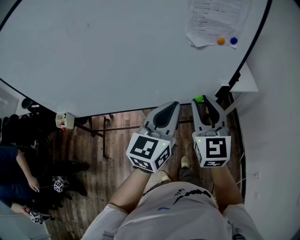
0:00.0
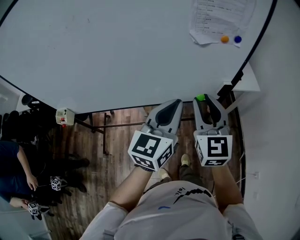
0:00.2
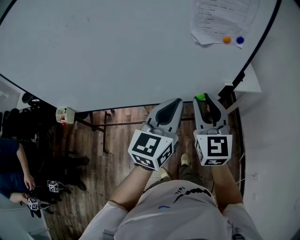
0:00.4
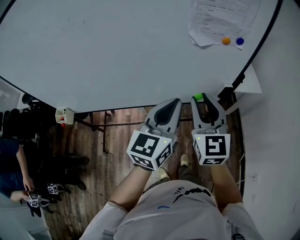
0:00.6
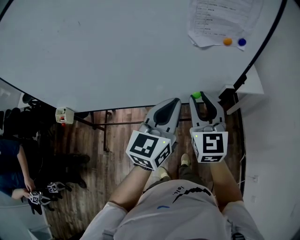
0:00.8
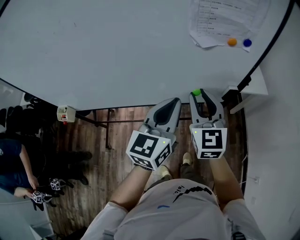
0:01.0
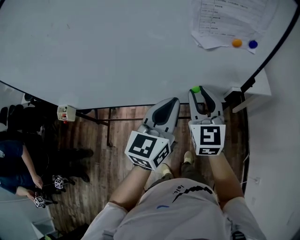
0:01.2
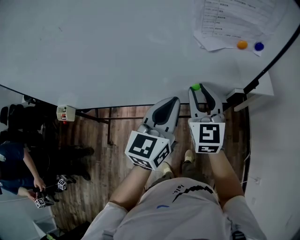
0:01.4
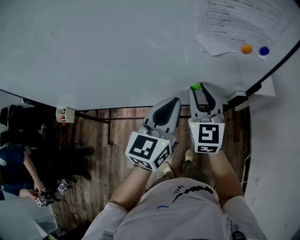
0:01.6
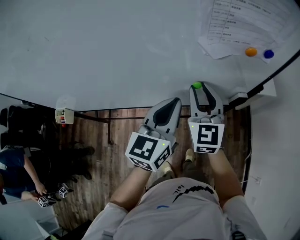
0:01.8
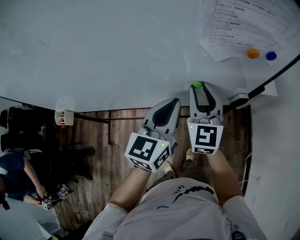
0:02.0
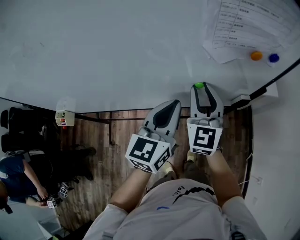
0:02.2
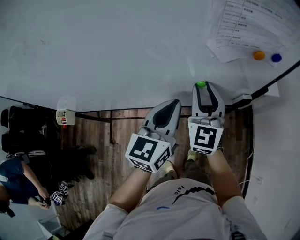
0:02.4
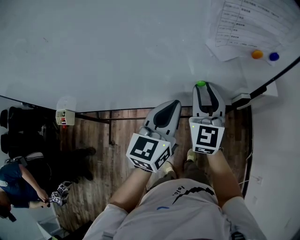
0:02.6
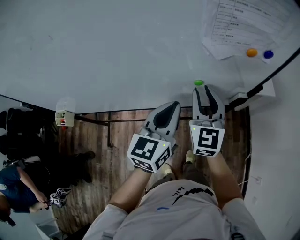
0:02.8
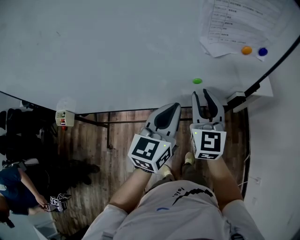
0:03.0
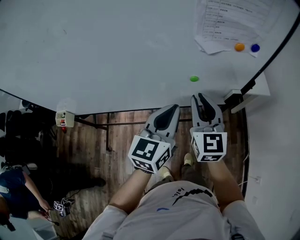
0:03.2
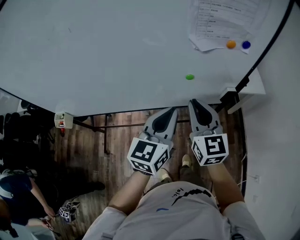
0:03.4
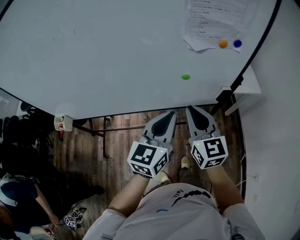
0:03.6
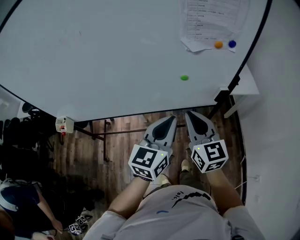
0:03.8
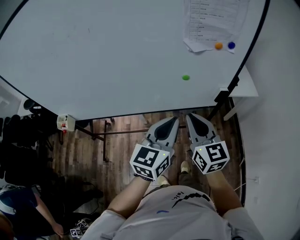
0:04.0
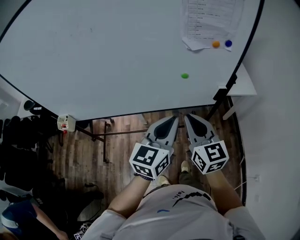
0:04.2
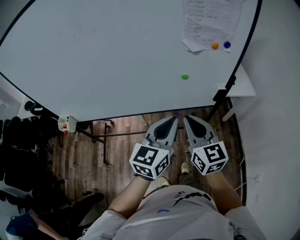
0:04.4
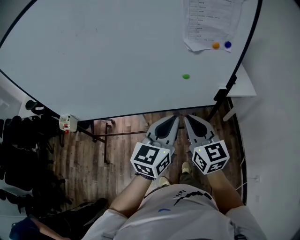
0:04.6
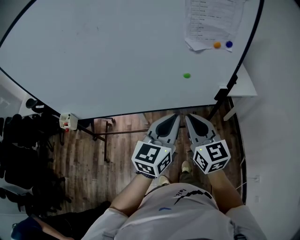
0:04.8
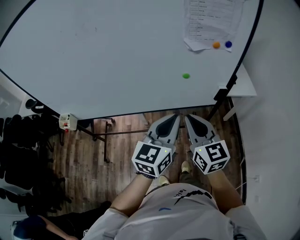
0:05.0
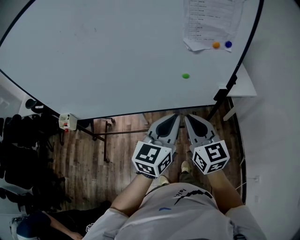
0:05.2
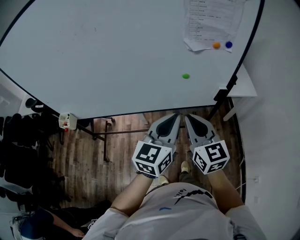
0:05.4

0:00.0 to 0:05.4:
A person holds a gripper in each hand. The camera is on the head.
0:00.0 to 0:01.4: The right gripper goes some 15 cm forward and downward, while the left gripper is displaced forward by about 10 cm.
0:01.4 to 0:02.8: There are only small adjustments of the grippers.
0:02.8 to 0:04.0: The grippers both shift backward by about 15 cm. The right gripper turns by roughly 20 degrees, and closes.
0:04.0 to 0:05.4: The grippers make only small movements.

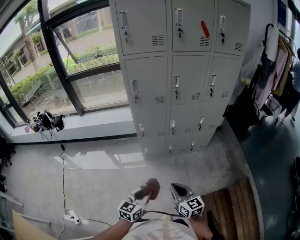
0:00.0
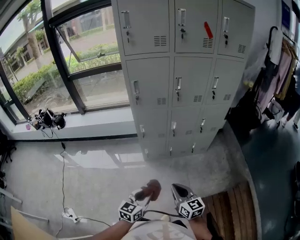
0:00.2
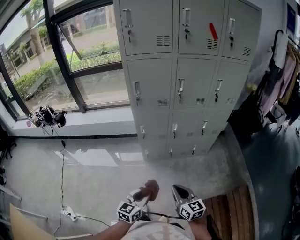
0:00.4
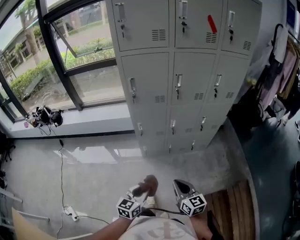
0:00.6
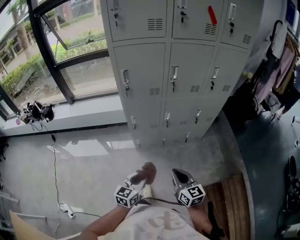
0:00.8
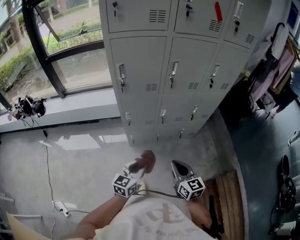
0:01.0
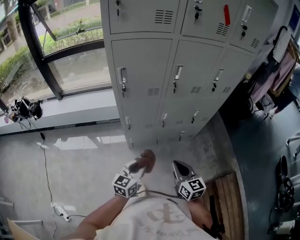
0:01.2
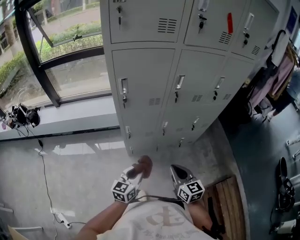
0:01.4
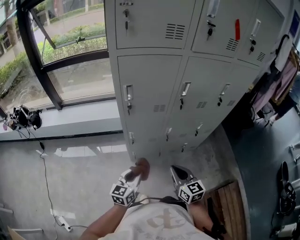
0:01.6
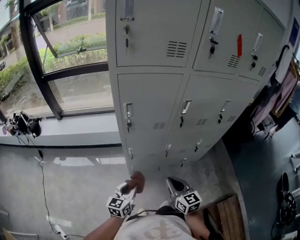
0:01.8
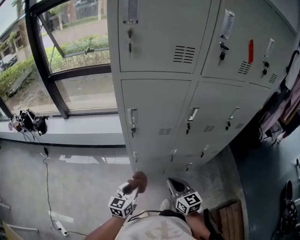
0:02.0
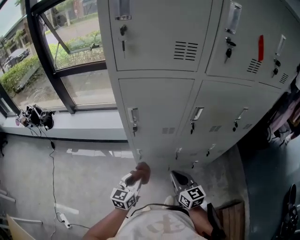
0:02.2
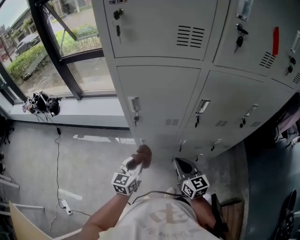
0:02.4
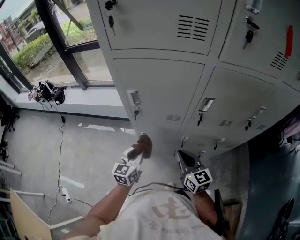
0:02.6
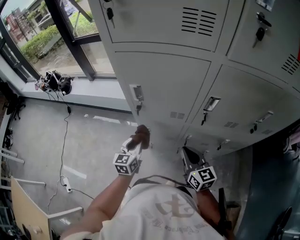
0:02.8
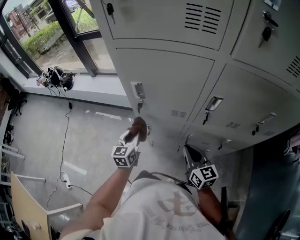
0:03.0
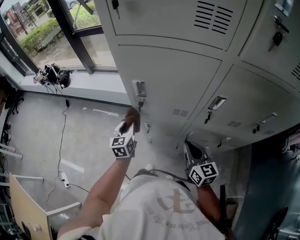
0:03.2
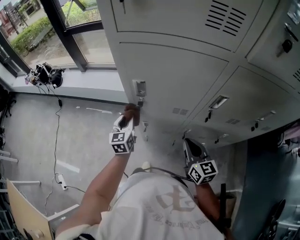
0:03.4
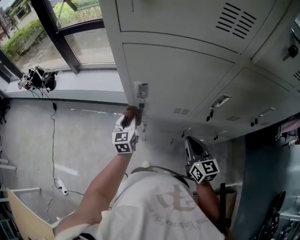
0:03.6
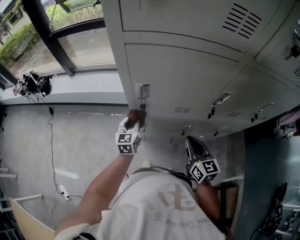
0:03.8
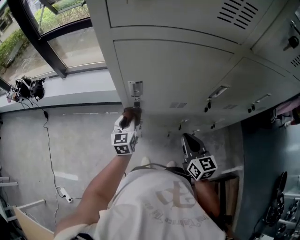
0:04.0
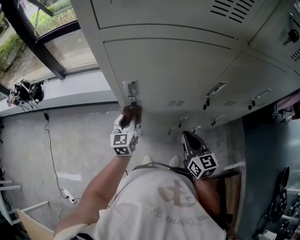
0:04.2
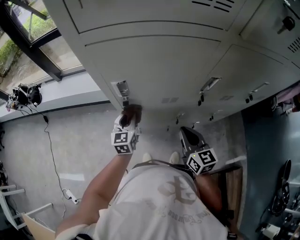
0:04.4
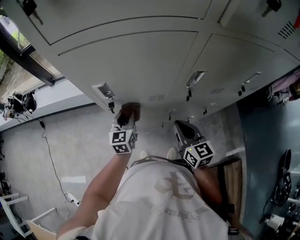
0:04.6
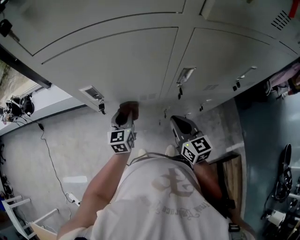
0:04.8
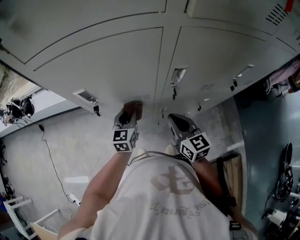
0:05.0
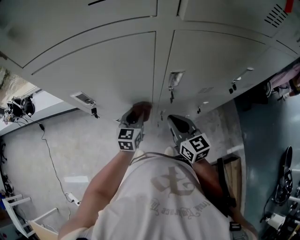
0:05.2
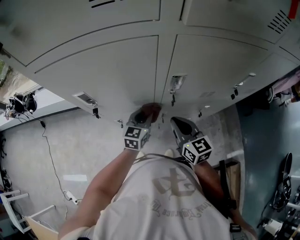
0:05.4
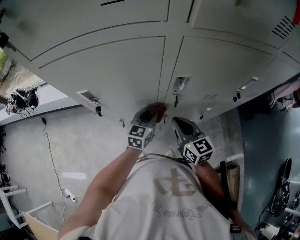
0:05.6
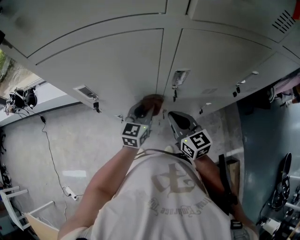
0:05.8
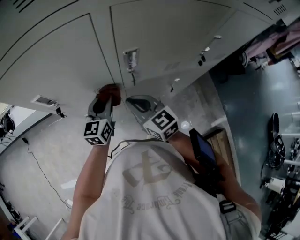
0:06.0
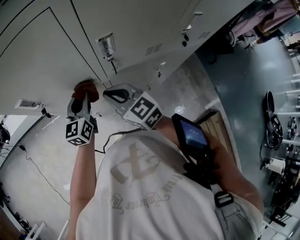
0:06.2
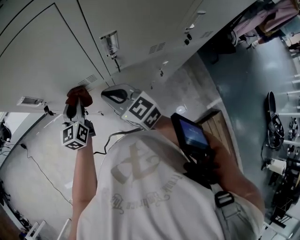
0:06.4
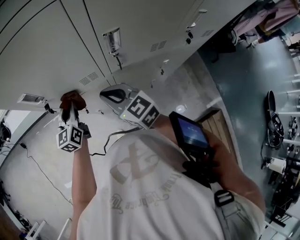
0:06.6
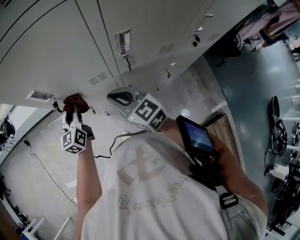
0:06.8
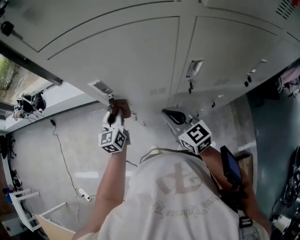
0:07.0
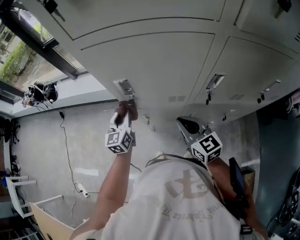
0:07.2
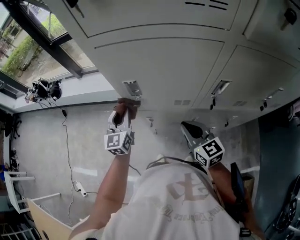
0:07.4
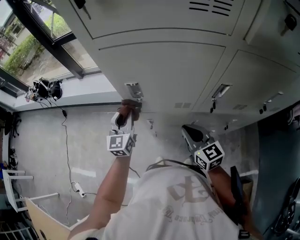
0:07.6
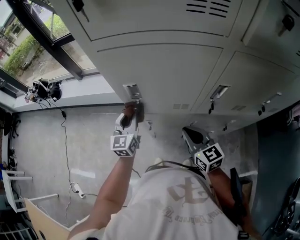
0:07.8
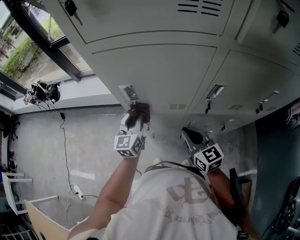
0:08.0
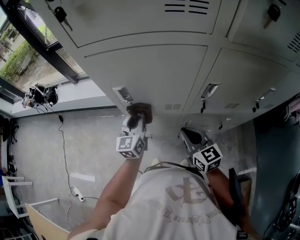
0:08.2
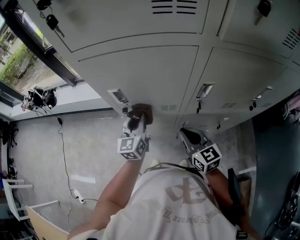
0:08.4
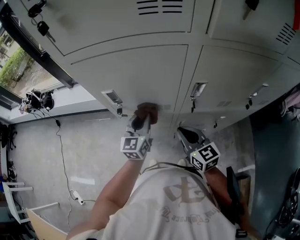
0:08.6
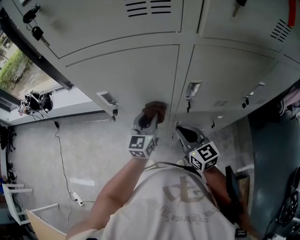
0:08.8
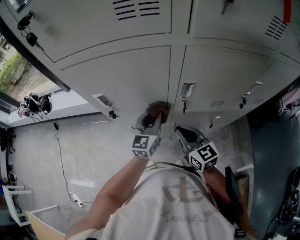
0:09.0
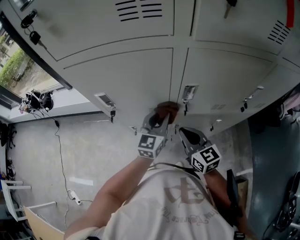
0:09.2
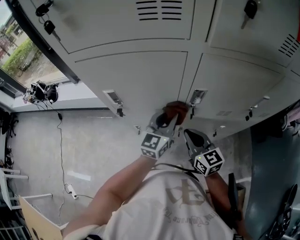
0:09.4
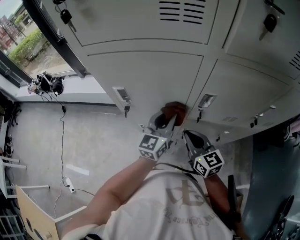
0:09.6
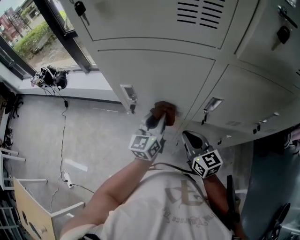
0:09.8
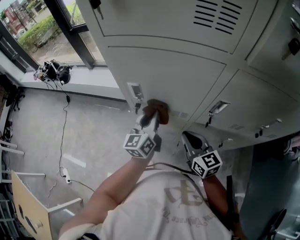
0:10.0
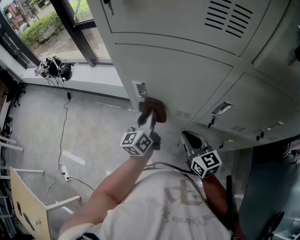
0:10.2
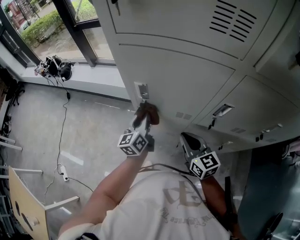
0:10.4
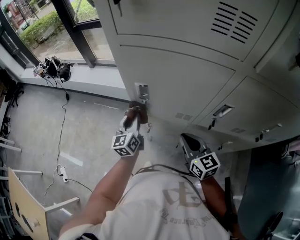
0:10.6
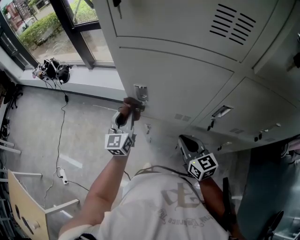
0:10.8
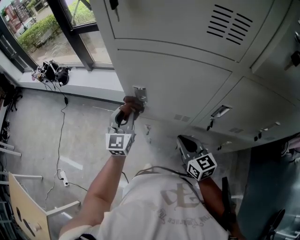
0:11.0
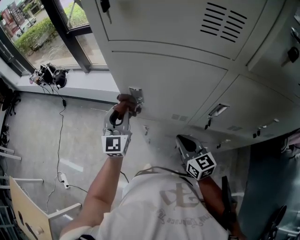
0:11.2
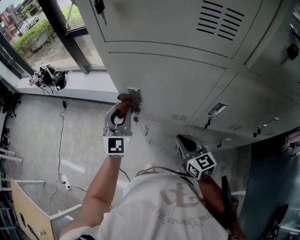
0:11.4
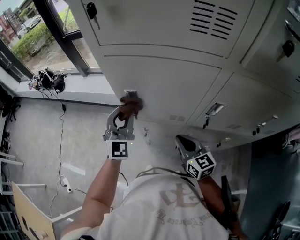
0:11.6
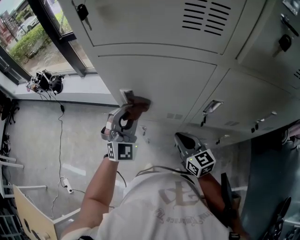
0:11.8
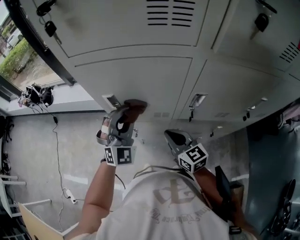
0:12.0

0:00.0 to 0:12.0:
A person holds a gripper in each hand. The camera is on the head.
0:00.0 to 0:01.6: Both grippers move forward, some 25 cm.
0:01.6 to 0:03.0: The right gripper shifts by roughly 20 cm. Meanwhile the left gripper shifts by roughly 20 cm, and turns by roughly 30 degrees.
0:03.0 to 0:04.4: The left gripper heads forward, covering approximately 10 cm.
0:04.4 to 0:06.0: The left gripper shifts some 15 cm to the right. The right gripper goes roughly 5 cm forward.
0:06.0 to 0:07.6: The right gripper shifts approximately 5 cm to the left, while the left gripper moves to the left, some 25 cm, and rotates about 30 degrees.
0:07.6 to 0:09.0: The left gripper shifts about 25 cm to the right. The right gripper shifts roughly 10 cm to the right.
0:09.0 to 0:10.4: The left gripper shifts about 20 cm to the left, and rotates roughly 40 degrees; the right gripper heads to the left, covering approximately 5 cm.
0:10.4 to 0:12.0: The left gripper moves upward and to the right, some 15 cm, and rotates around the line of its fingers by roughly 80 degrees, clockwise from behind.

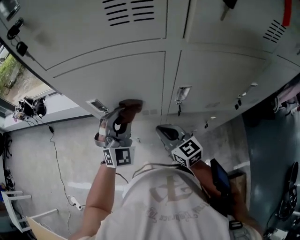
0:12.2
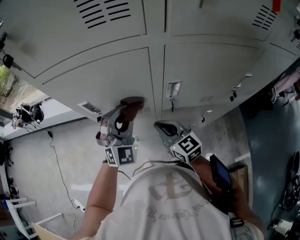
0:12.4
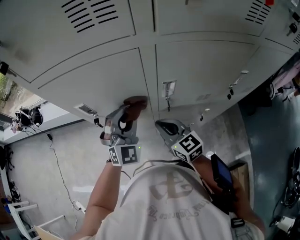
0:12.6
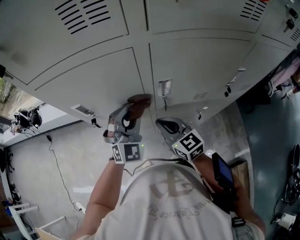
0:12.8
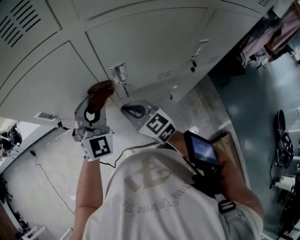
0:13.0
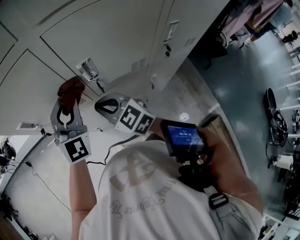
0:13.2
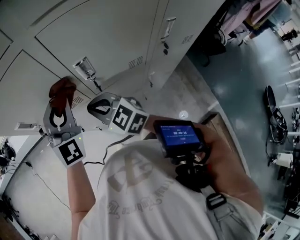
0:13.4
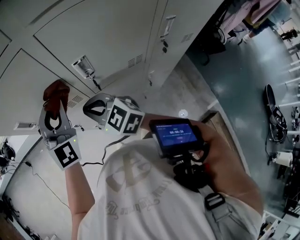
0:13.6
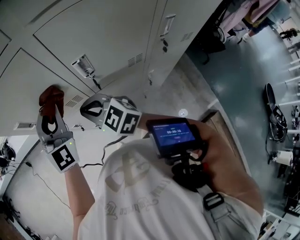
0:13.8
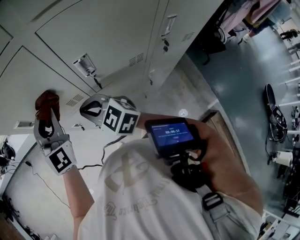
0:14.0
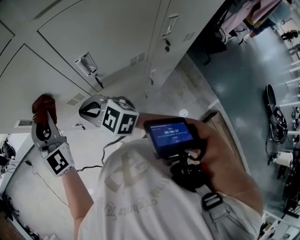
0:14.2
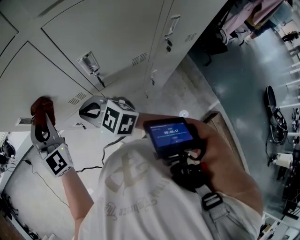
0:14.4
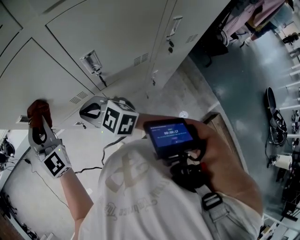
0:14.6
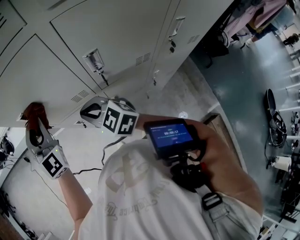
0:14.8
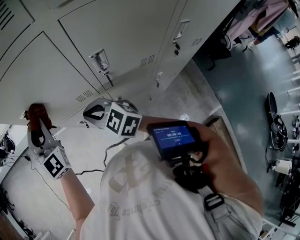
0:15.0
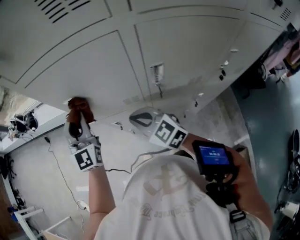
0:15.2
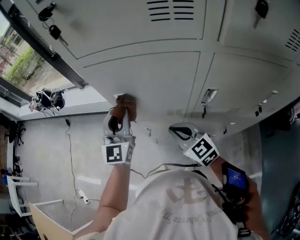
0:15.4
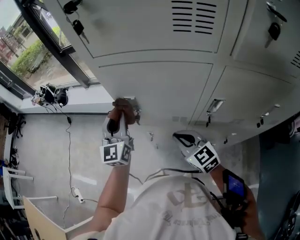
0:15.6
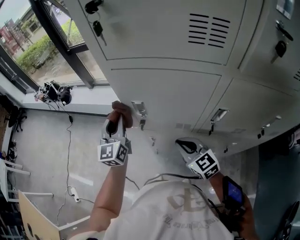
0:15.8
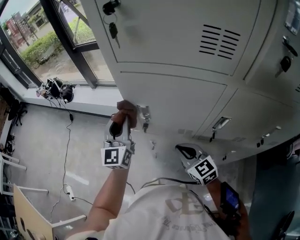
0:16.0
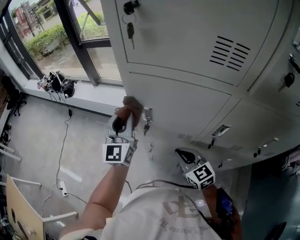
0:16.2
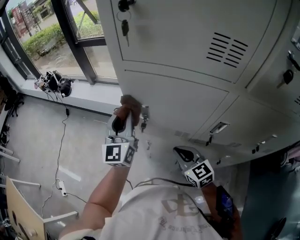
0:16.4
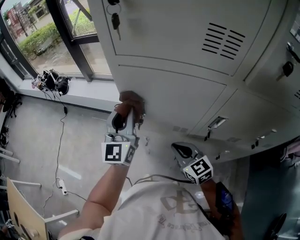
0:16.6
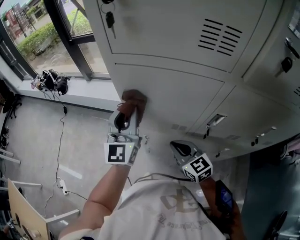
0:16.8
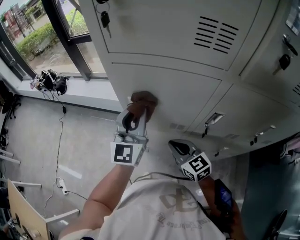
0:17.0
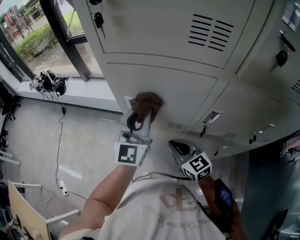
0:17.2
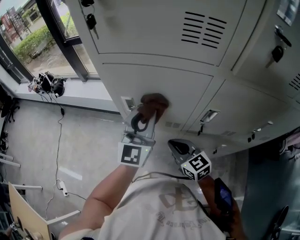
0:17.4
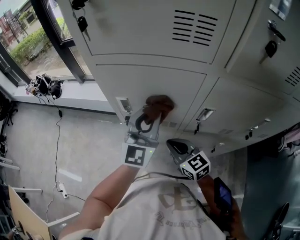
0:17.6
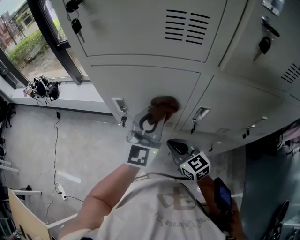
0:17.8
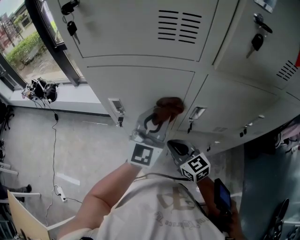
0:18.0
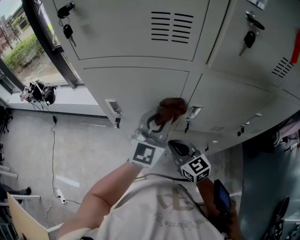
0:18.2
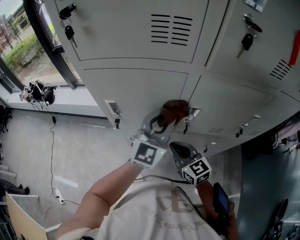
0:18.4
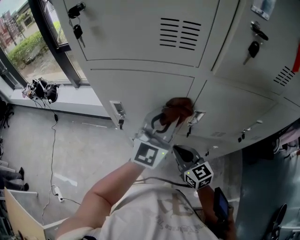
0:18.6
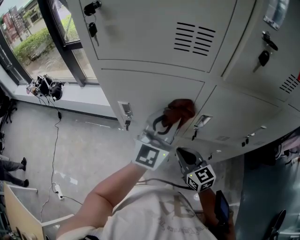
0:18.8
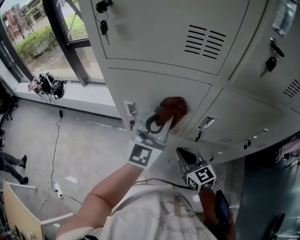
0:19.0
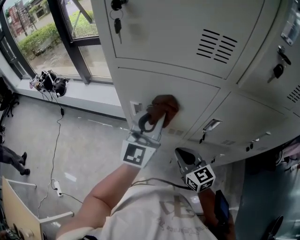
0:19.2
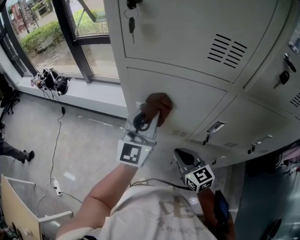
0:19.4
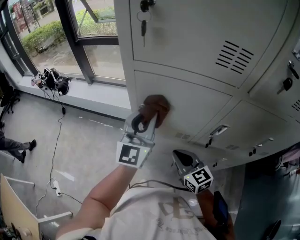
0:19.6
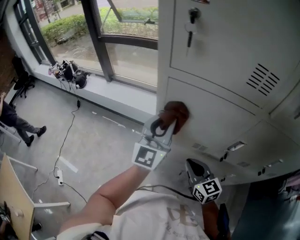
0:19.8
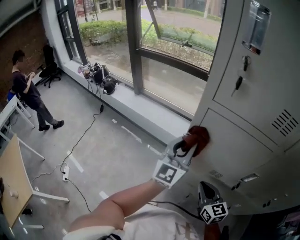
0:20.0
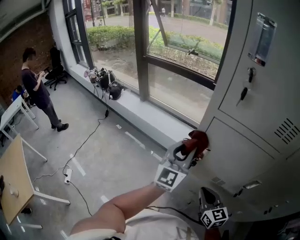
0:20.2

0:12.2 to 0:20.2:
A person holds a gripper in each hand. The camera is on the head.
0:12.2 to 0:13.8: The left gripper changes its angle by some 20 degrees.
0:13.8 to 0:15.4: The left gripper travels to the left by about 15 cm, and swivels approximately 20 degrees.
0:15.4 to 0:17.0: The left gripper goes to the left and returns, approximately 10 cm each way.
0:17.0 to 0:18.6: The right gripper is displaced to the right by roughly 10 cm. The left gripper moves to the right, roughly 15 cm, and rotates roughly 30 degrees.
0:18.6 to 0:20.2: The right gripper travels to the left by about 10 cm, while the left gripper shifts approximately 25 cm to the left, and swivels approximately 30 degrees.
